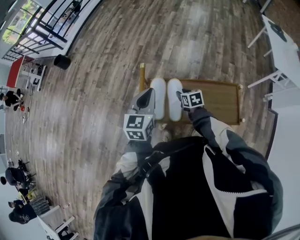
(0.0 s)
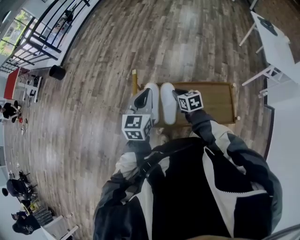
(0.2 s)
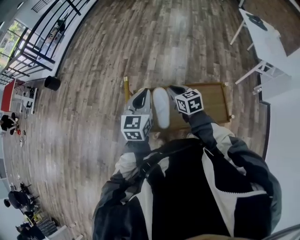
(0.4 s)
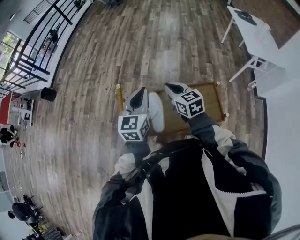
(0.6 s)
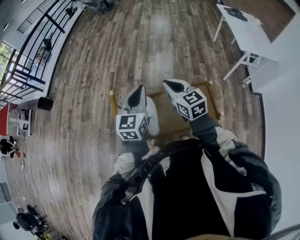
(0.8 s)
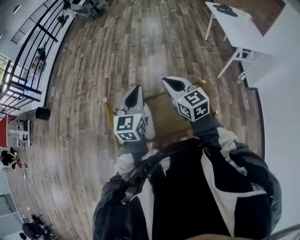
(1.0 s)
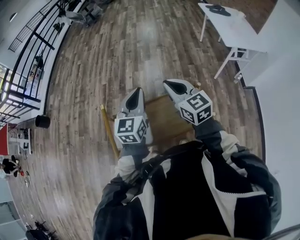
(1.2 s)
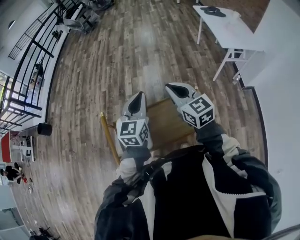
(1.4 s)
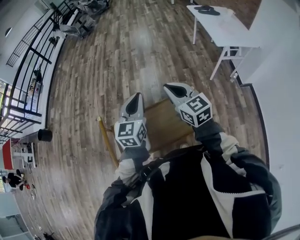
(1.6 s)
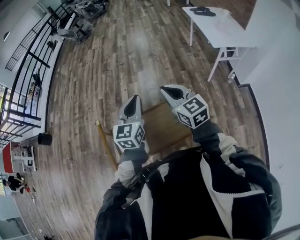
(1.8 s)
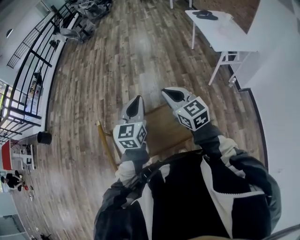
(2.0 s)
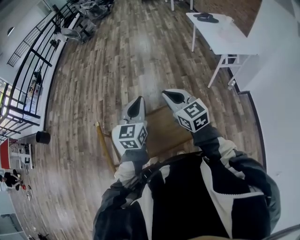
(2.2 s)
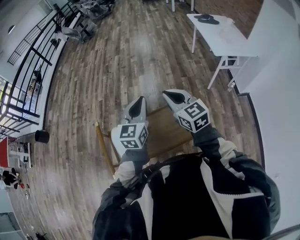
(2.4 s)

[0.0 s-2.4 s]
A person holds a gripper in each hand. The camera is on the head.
0.0 to 1.2 s: The right gripper goes approximately 35 cm upward and to the right, tips its fingers upward by approximately 40 degrees, and closes, while the left gripper is displaced to the right and upward by some 20 cm.
1.2 to 2.4 s: The grippers both shift to the right by approximately 5 cm.

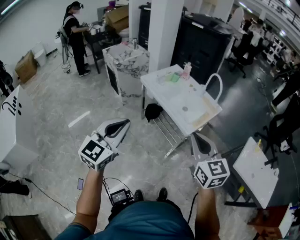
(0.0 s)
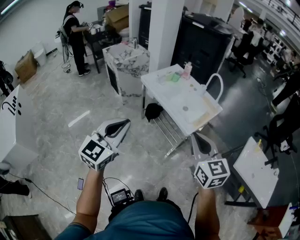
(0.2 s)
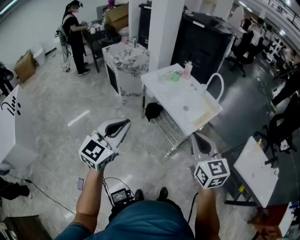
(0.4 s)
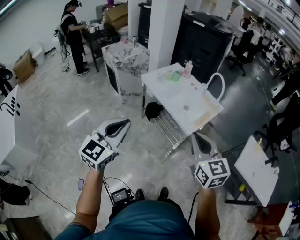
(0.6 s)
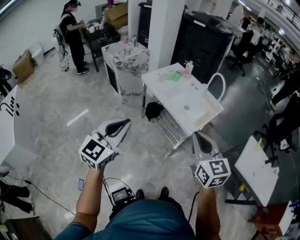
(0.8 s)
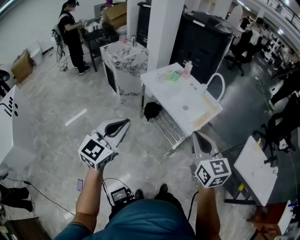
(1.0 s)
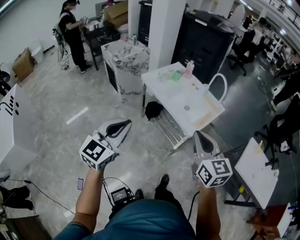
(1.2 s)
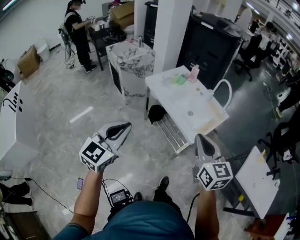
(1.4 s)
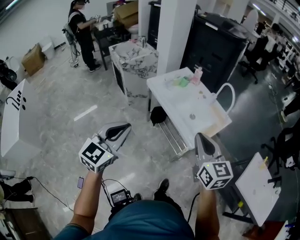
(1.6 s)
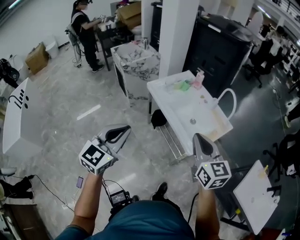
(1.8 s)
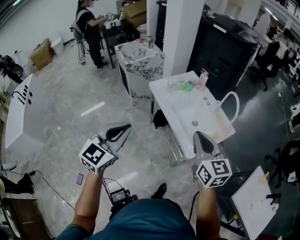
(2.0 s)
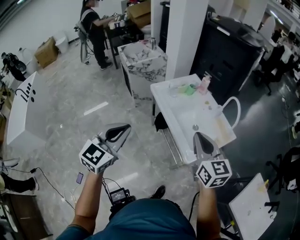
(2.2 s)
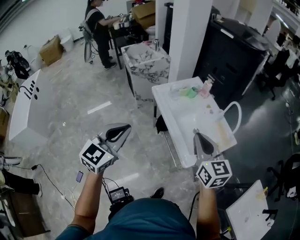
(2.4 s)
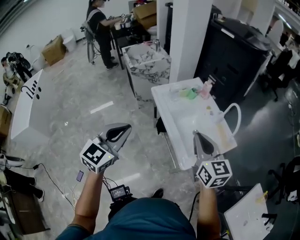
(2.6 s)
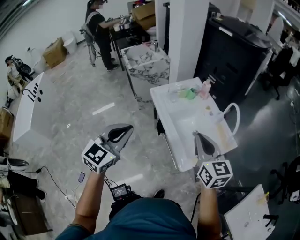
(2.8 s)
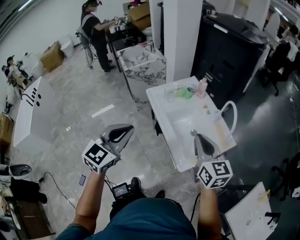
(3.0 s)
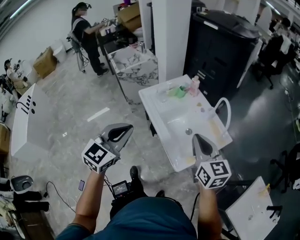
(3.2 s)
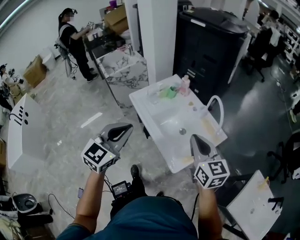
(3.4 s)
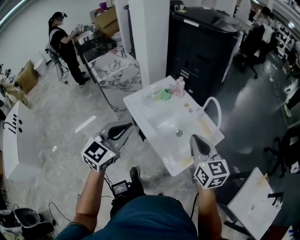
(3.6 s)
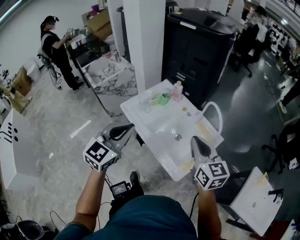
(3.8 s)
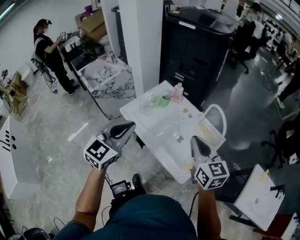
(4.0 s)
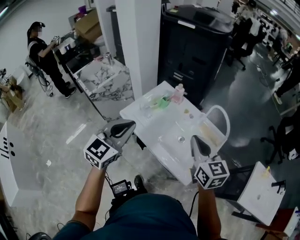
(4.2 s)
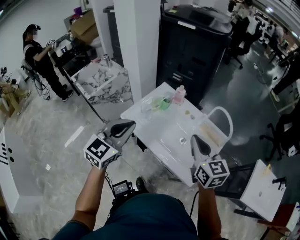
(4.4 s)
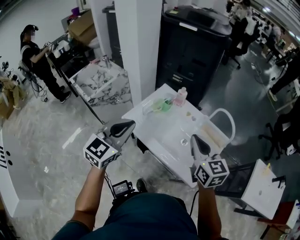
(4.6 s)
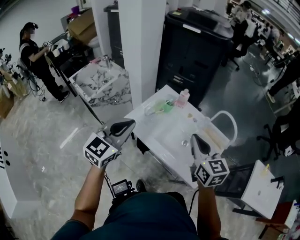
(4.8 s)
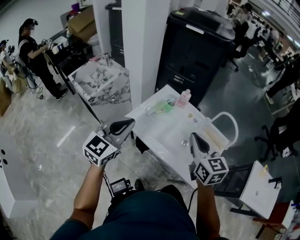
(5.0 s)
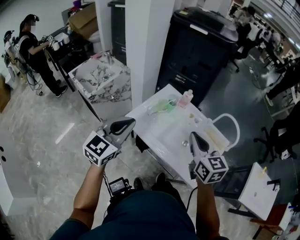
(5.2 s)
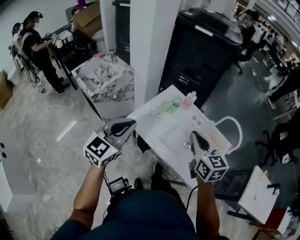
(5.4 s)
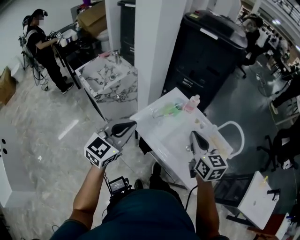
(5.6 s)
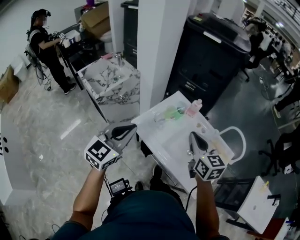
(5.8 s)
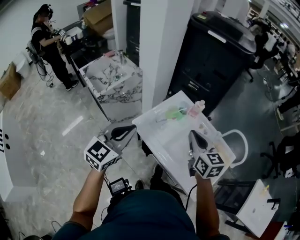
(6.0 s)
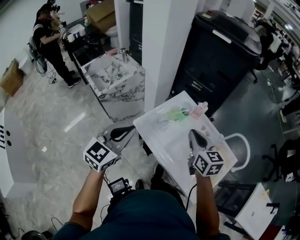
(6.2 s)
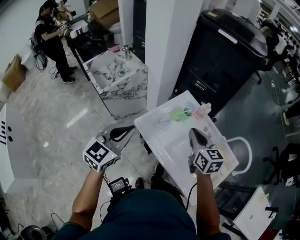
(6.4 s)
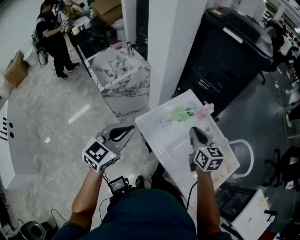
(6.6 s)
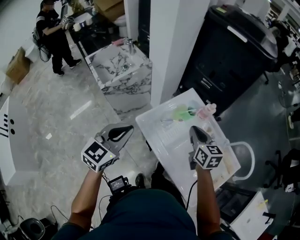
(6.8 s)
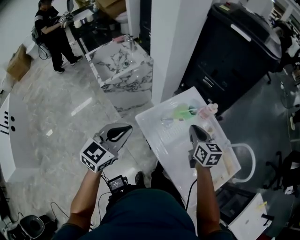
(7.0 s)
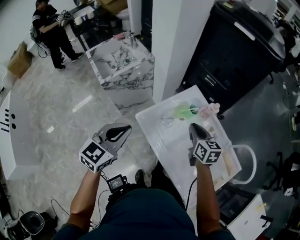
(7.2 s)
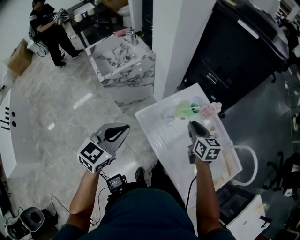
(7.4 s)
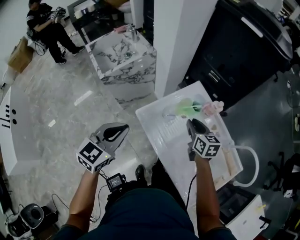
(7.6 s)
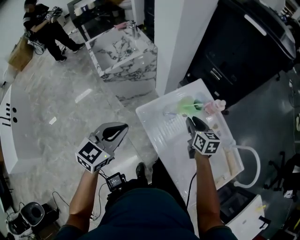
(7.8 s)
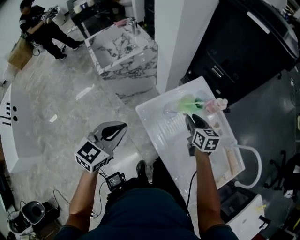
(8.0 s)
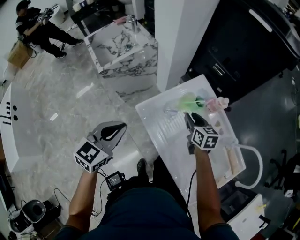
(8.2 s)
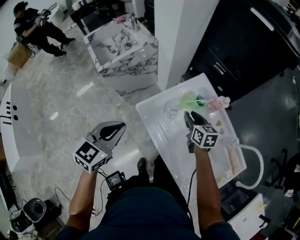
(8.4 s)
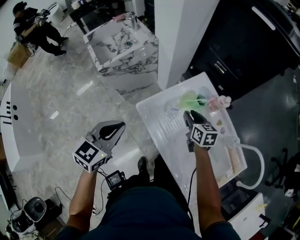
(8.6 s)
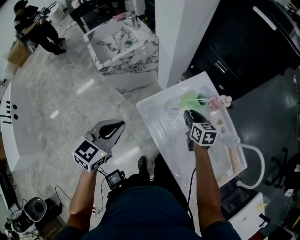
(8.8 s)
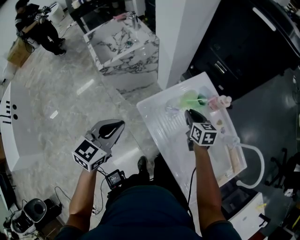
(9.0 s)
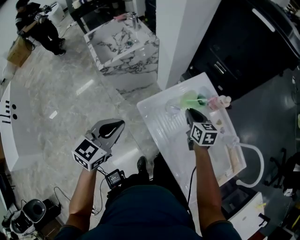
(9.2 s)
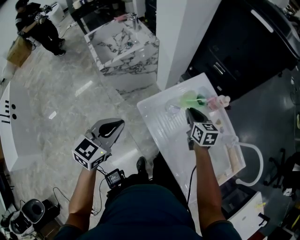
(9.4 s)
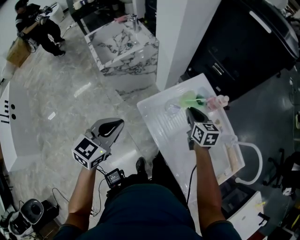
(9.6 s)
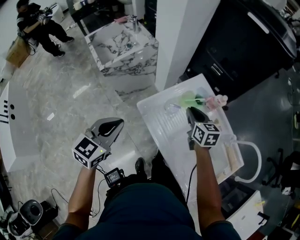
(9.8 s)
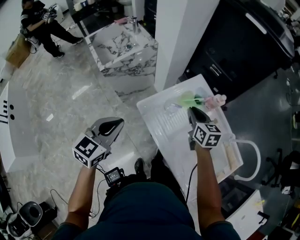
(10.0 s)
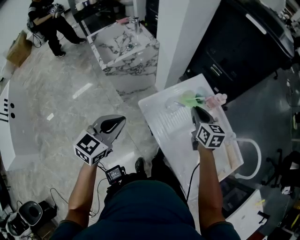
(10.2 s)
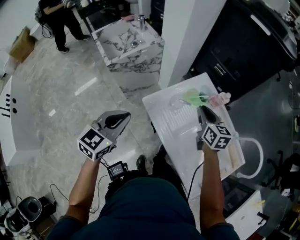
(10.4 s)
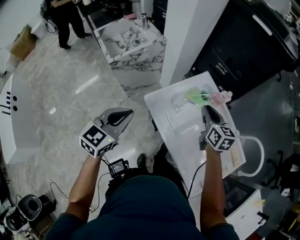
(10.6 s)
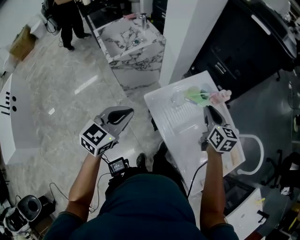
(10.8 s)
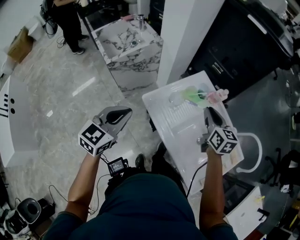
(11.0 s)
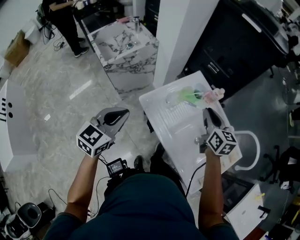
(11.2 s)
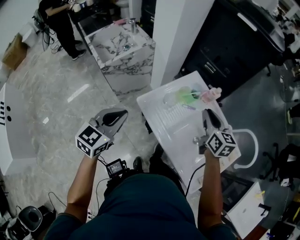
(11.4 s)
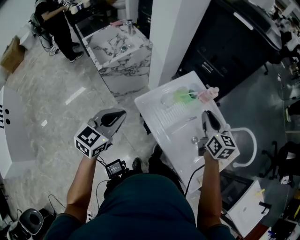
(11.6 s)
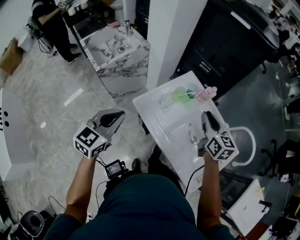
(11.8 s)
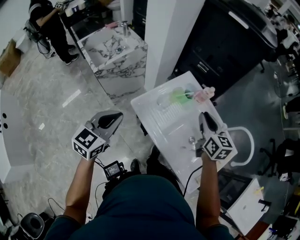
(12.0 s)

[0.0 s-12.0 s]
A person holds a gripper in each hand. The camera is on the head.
0.0 to 1.6 s: Both grippers travel together forward, some 10 cm.
1.6 to 3.0 s: Both grippers move forward and to the right, roughly 20 cm.
3.0 to 4.4 s: The left gripper travels forward by some 25 cm, and rotates approximately 30 degrees, while the right gripper goes about 15 cm forward and to the left, and rotates roughly 20 degrees.
4.4 to 6.0 s: The left gripper goes approximately 10 cm to the left. The right gripper shifts approximately 15 cm to the left and forward.
6.0 to 7.6 s: The left gripper shifts roughly 10 cm downward, while the right gripper travels downward and forward by roughly 20 cm.
7.6 to 9.0 s: The right gripper is displaced downward by about 5 cm.
9.0 to 10.4 s: The right gripper shifts approximately 10 cm upward.
10.4 to 12.0 s: The right gripper goes approximately 10 cm to the right, upward and backward.

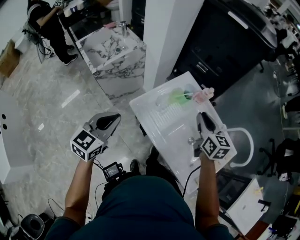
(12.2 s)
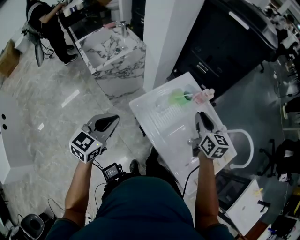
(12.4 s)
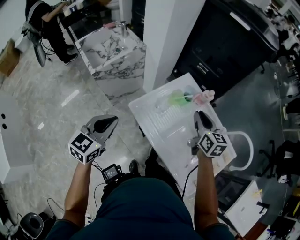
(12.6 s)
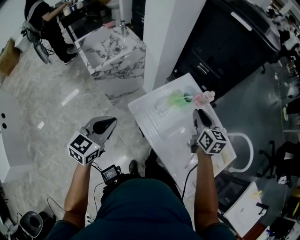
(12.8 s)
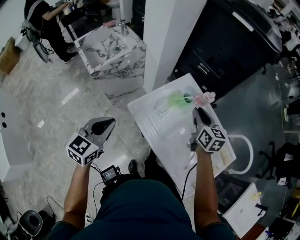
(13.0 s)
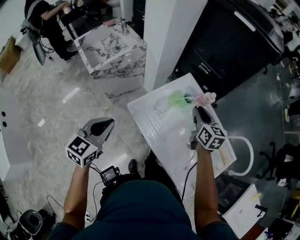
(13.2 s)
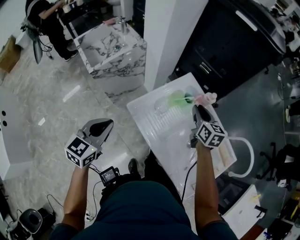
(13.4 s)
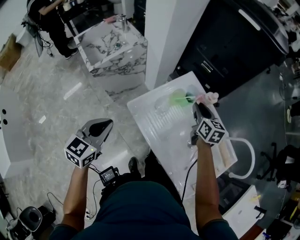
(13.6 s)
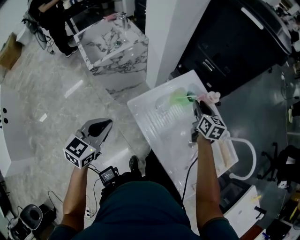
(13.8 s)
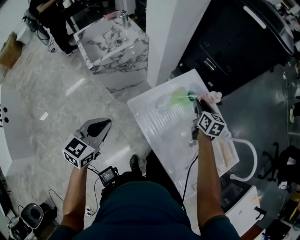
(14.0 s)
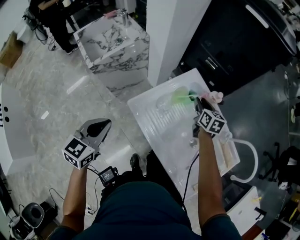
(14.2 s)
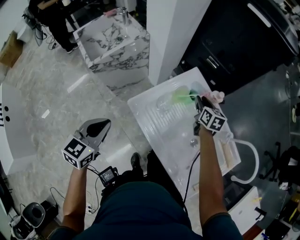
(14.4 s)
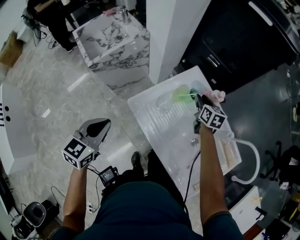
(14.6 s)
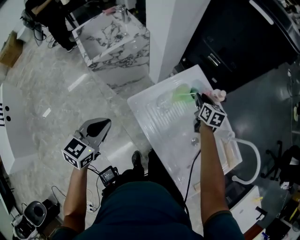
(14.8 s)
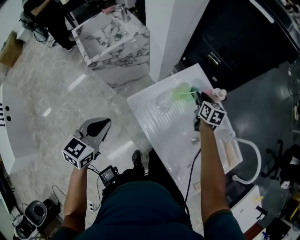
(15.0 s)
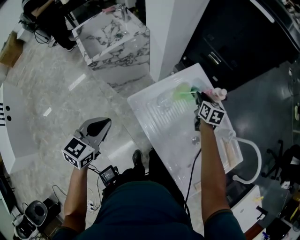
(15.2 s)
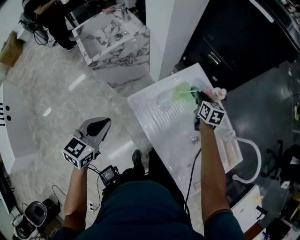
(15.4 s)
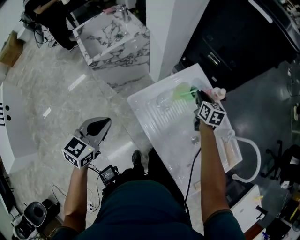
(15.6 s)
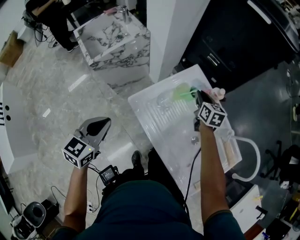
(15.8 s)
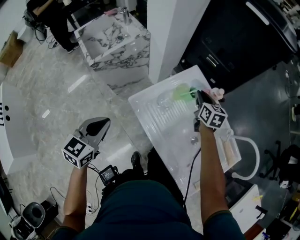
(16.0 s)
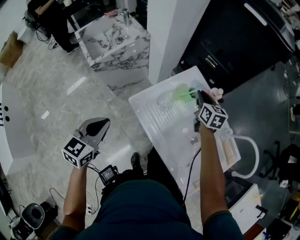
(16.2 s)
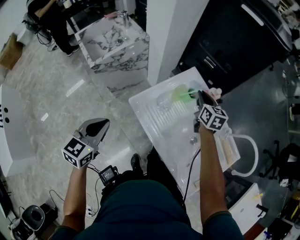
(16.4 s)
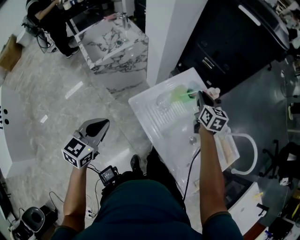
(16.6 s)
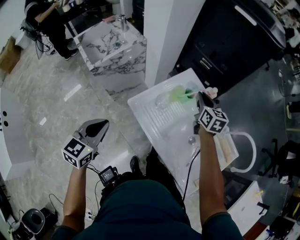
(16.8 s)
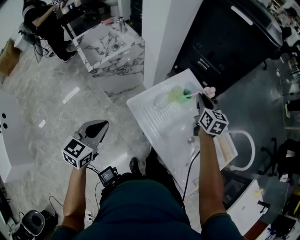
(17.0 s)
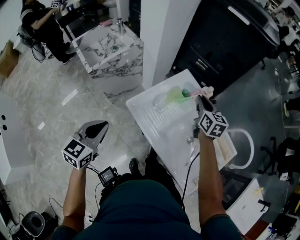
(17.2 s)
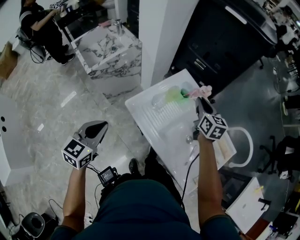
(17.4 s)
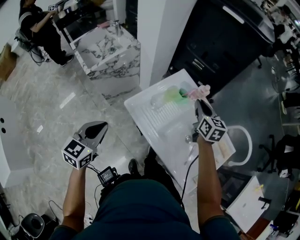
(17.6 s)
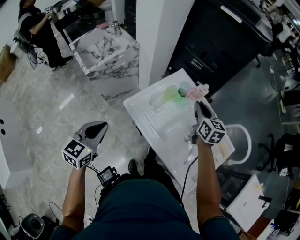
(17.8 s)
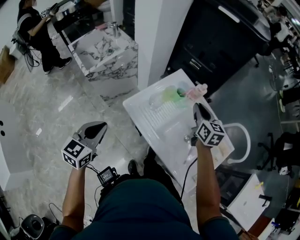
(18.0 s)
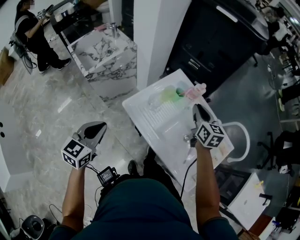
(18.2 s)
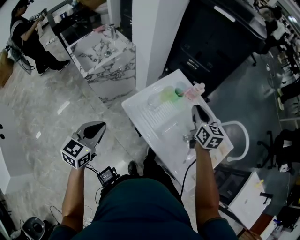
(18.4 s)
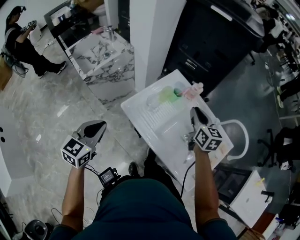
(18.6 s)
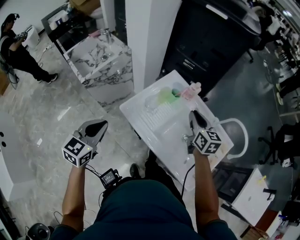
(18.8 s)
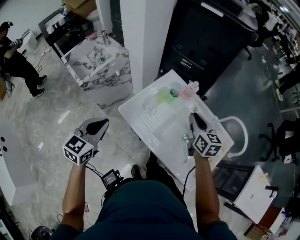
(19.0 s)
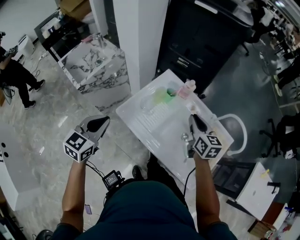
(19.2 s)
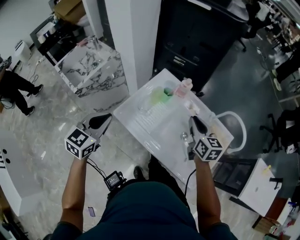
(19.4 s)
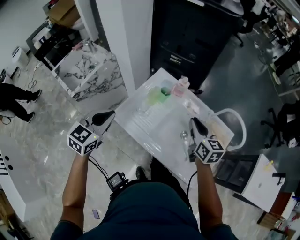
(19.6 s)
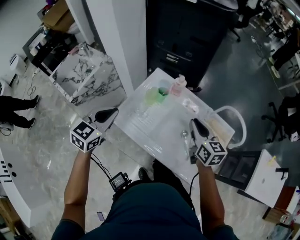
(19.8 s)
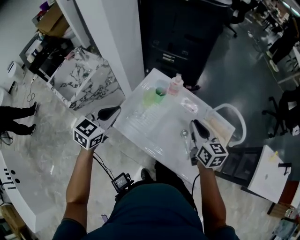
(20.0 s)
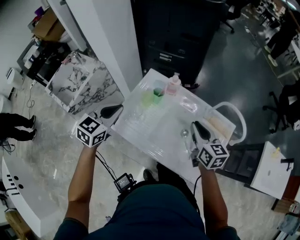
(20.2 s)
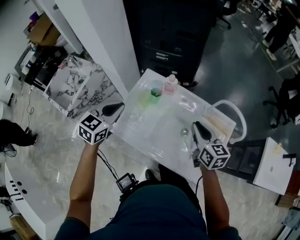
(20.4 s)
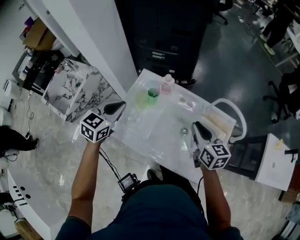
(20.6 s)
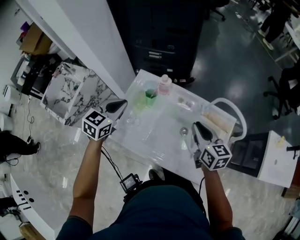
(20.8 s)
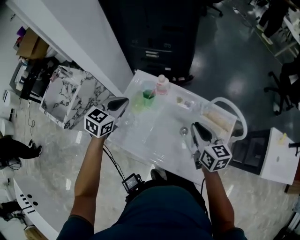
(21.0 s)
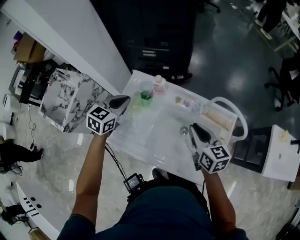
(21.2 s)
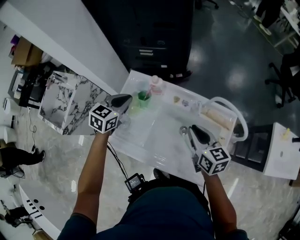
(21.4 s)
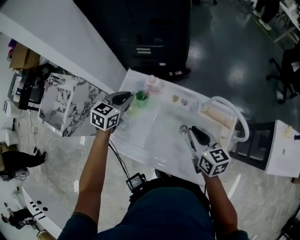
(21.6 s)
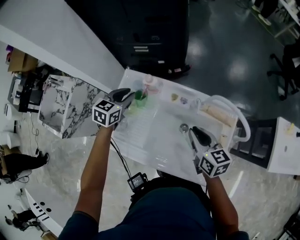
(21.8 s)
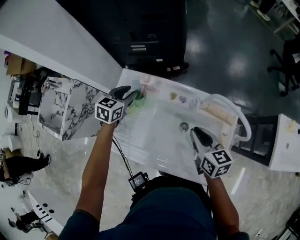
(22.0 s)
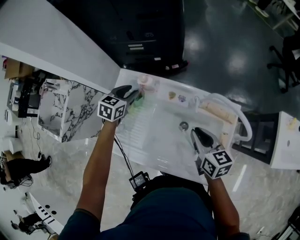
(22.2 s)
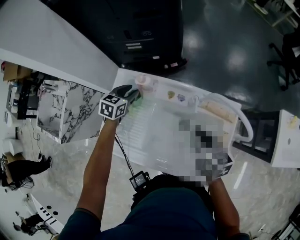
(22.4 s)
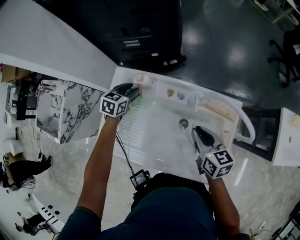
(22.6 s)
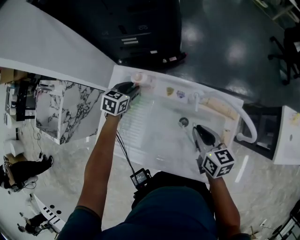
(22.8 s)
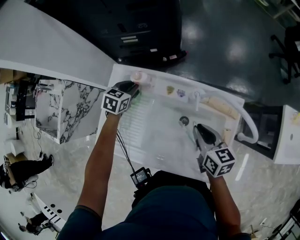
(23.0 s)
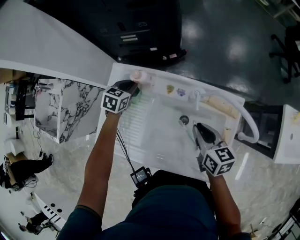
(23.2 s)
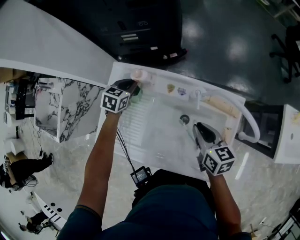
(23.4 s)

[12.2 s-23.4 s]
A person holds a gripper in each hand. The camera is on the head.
12.2 to 13.8 s: The right gripper heads forward and downward, covering approximately 15 cm.
13.8 to 15.4 s: The right gripper is displaced downward and forward by about 10 cm.
15.4 to 17.0 s: The right gripper moves upward and backward, roughly 15 cm.
17.0 to 18.6 s: The right gripper travels backward by roughly 10 cm.
18.6 to 20.2 s: The left gripper shifts approximately 20 cm forward and to the right, and rotates roughly 20 degrees; the right gripper travels to the right and backward by some 10 cm.
20.2 to 21.8 s: The left gripper goes about 25 cm forward, downward and to the right, and opens. Meanwhile the right gripper travels downward by approximately 5 cm.
21.8 to 23.4 s: The right gripper moves downward, some 5 cm; the left gripper moves downward and forward, some 10 cm.
